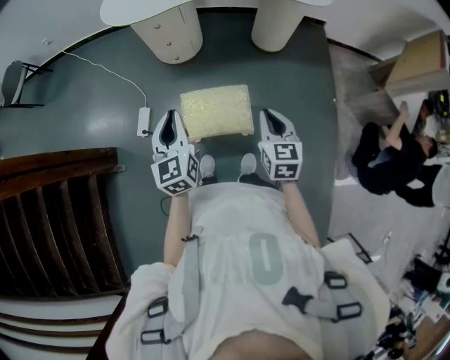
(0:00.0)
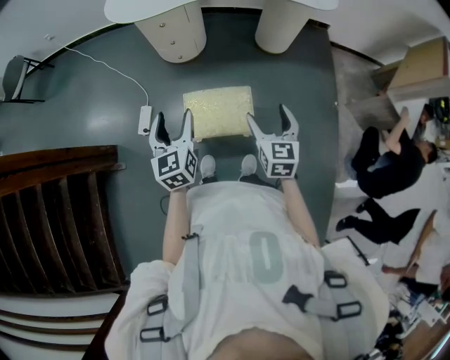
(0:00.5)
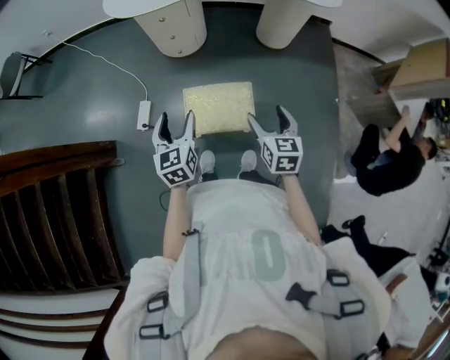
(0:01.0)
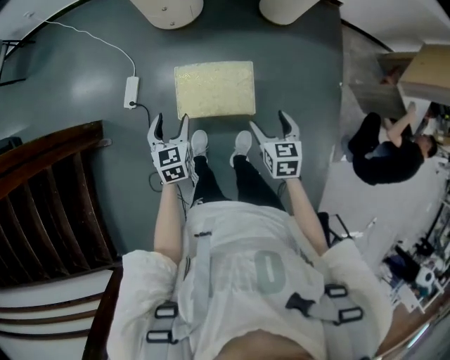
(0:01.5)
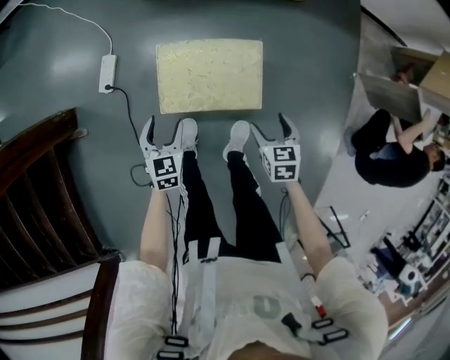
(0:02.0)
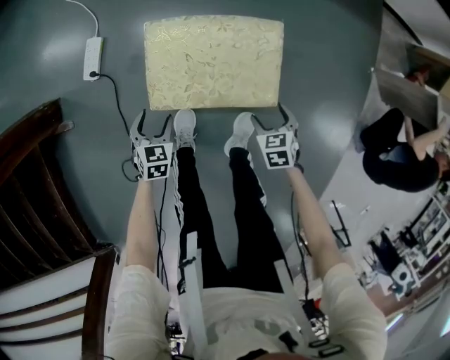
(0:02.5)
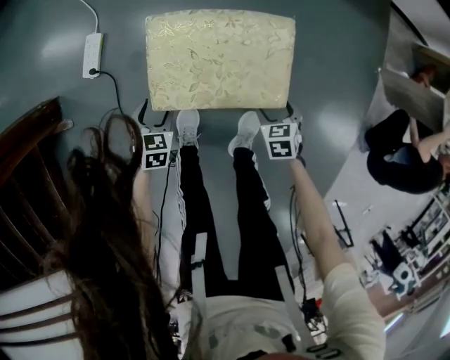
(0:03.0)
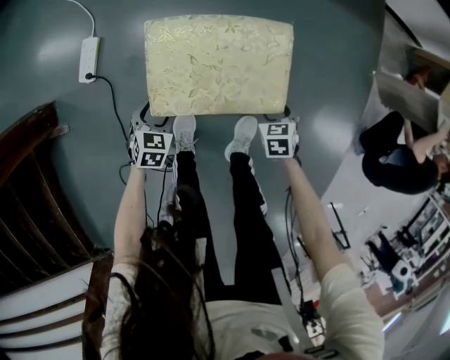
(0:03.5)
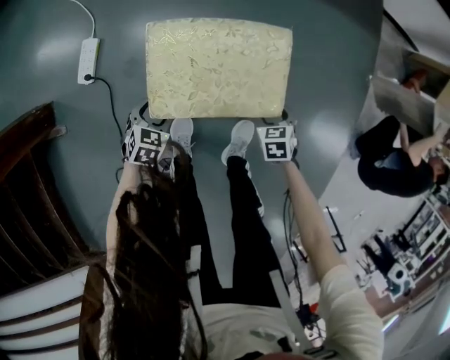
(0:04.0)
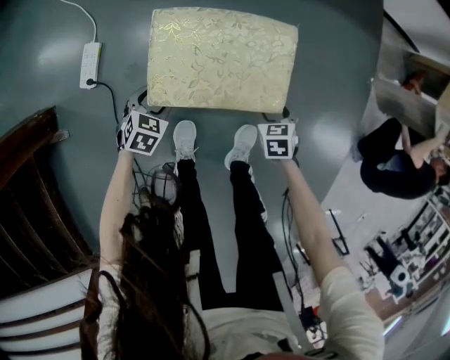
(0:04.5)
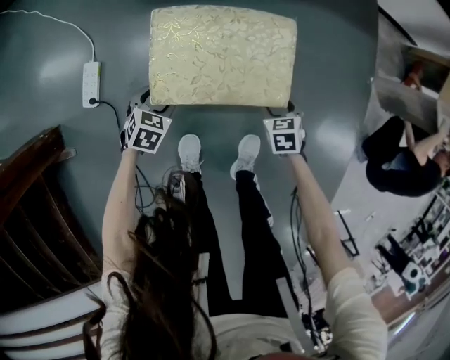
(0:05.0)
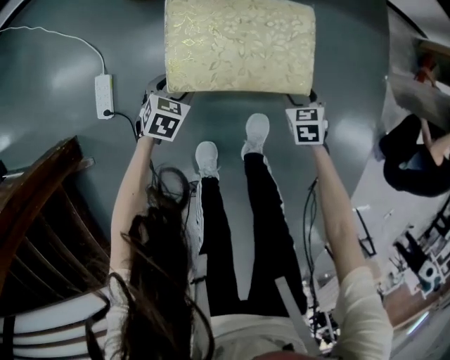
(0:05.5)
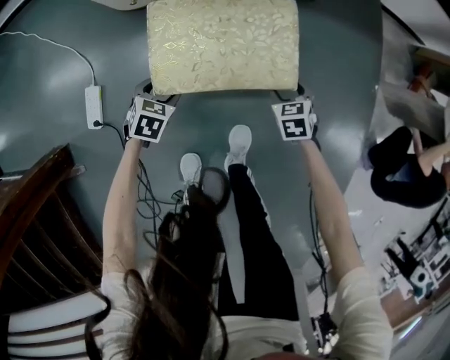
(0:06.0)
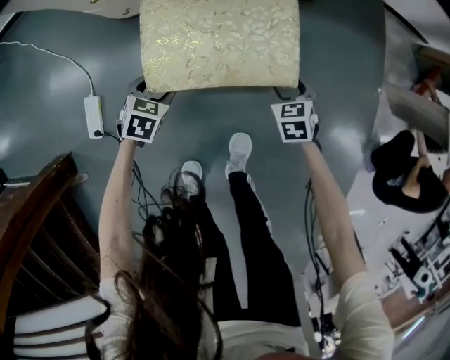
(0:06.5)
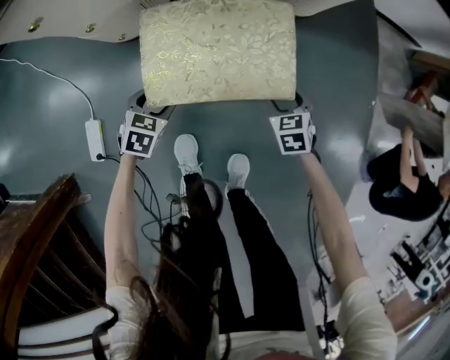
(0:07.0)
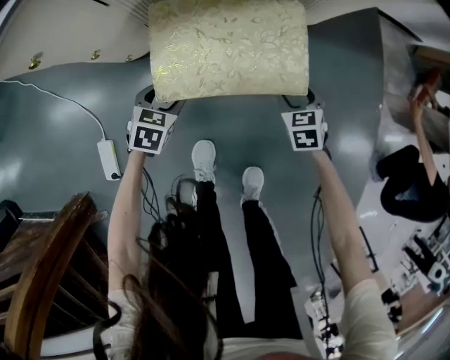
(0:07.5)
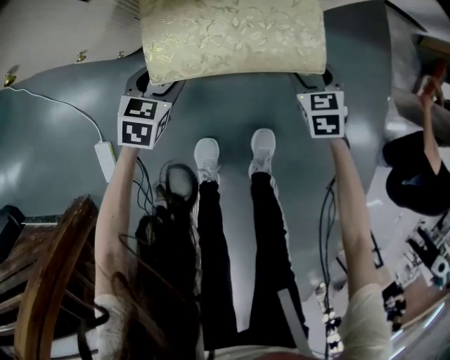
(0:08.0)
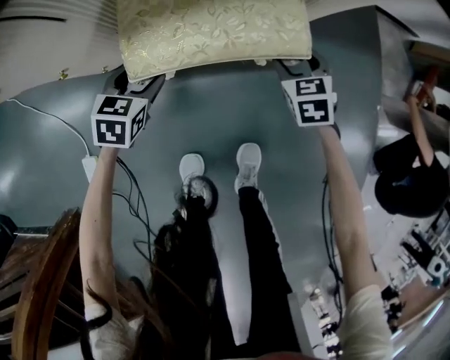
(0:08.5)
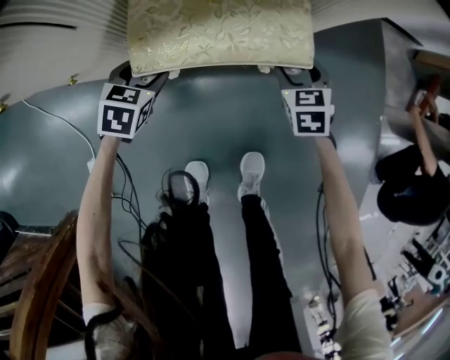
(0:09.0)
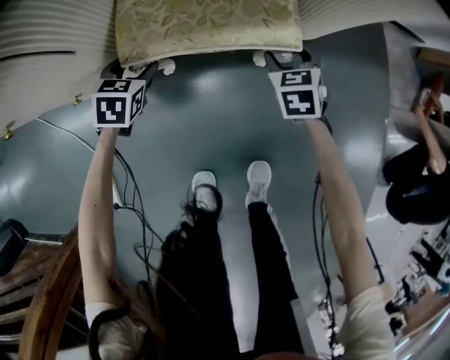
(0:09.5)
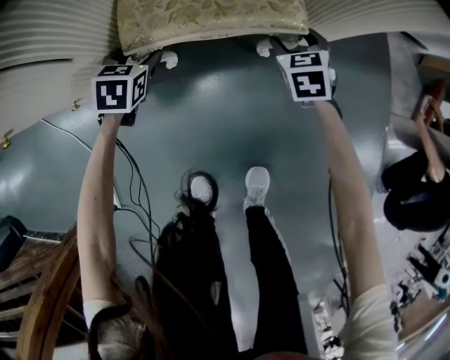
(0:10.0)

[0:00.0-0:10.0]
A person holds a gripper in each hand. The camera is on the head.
0:00.0 to 0:02.0: Both grippers move downward, roughly 35 cm. The left gripper tilts its fingers approximately 30 degrees downward, and opens its fingers; the right gripper swivels some 30 degrees, and opens its fingers.
0:02.0 to 0:04.0: Both grippers move downward, some 20 cm. The left gripper turns by roughly 30 degrees.
0:04.0 to 0:08.0: The grippers move only a little.
0:08.0 to 0:10.0: The grippers make only small movements.

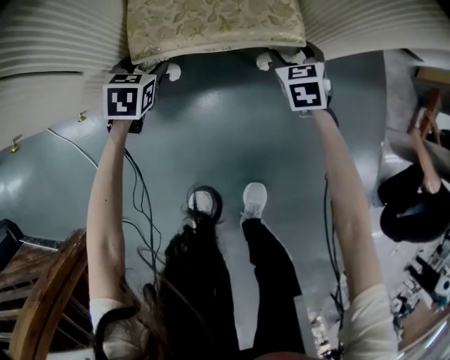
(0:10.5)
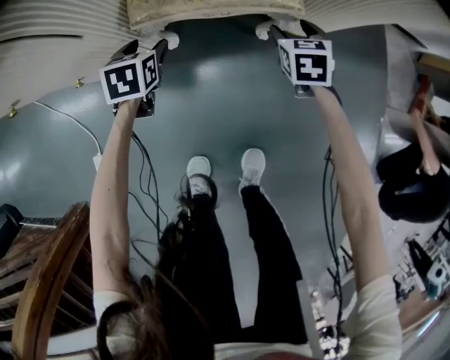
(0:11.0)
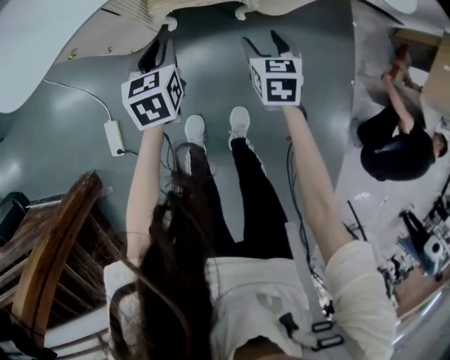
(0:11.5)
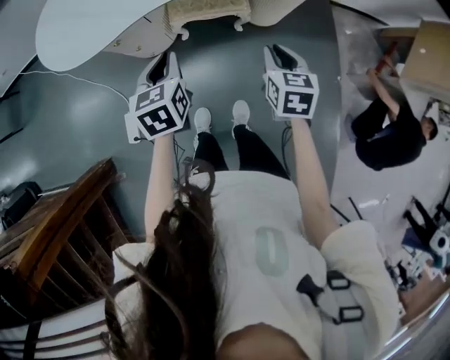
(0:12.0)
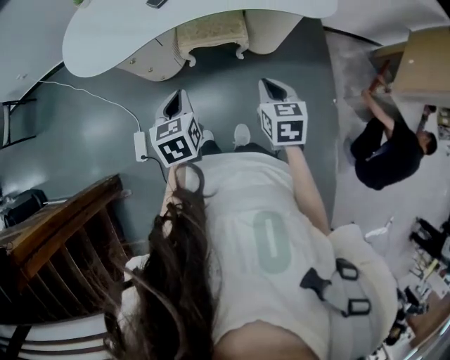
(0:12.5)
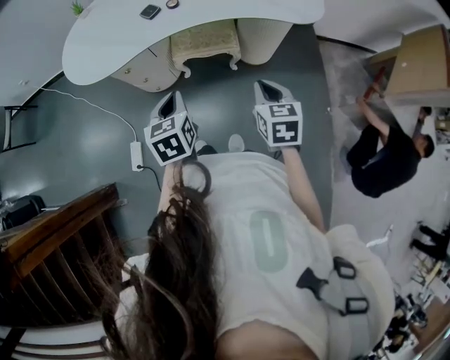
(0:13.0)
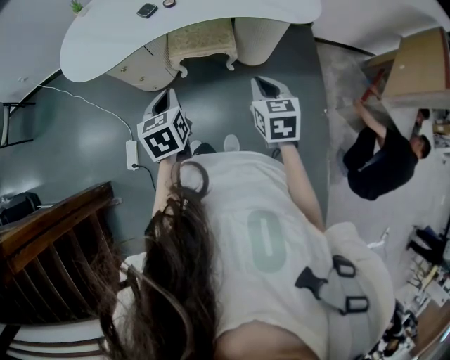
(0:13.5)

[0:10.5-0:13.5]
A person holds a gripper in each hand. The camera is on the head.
0:10.5 to 0:12.0: Both grippers move upward and backward, about 50 cm. The left gripper swivels some 30 degrees, and closes up. Meanwhile the right gripper turns by approximately 20 degrees, and closes.
0:12.0 to 0:13.5: The right gripper moves backward and upward, approximately 10 cm. The left gripper is displaced backward and to the right by approximately 10 cm.

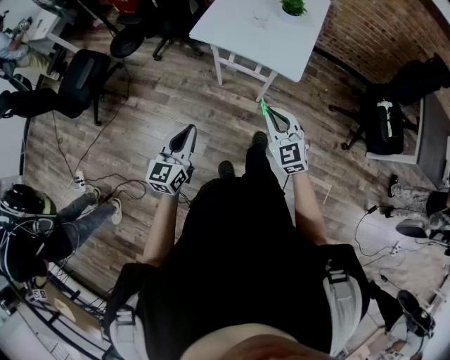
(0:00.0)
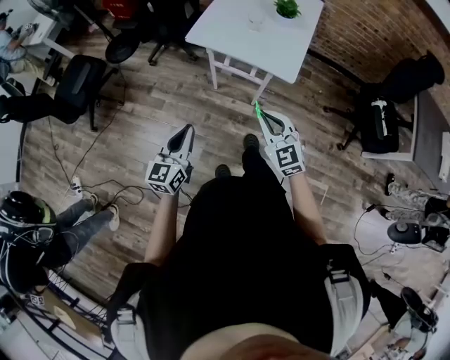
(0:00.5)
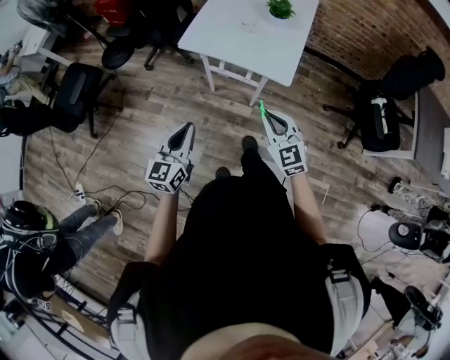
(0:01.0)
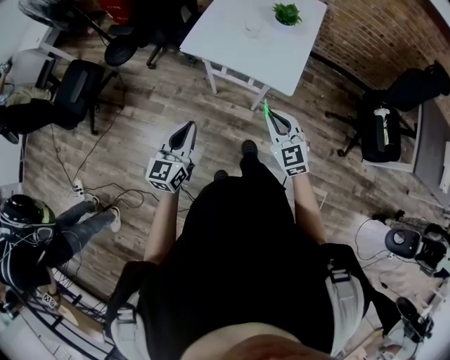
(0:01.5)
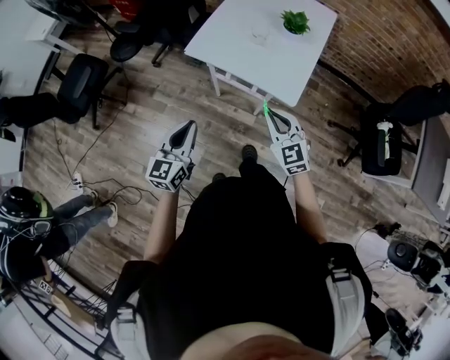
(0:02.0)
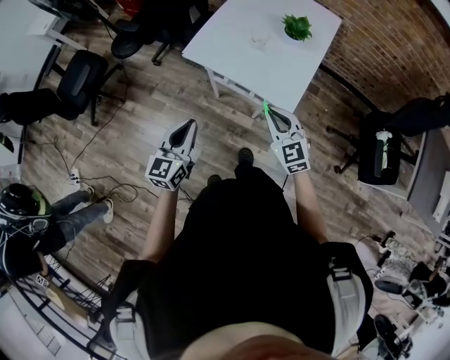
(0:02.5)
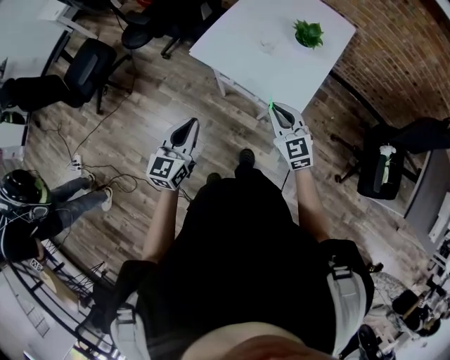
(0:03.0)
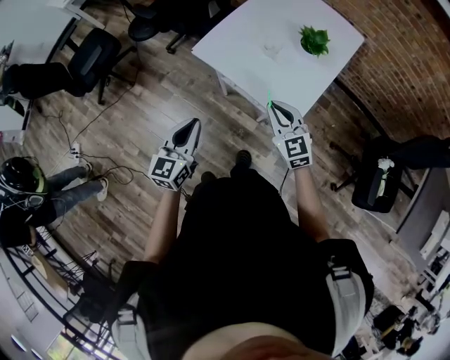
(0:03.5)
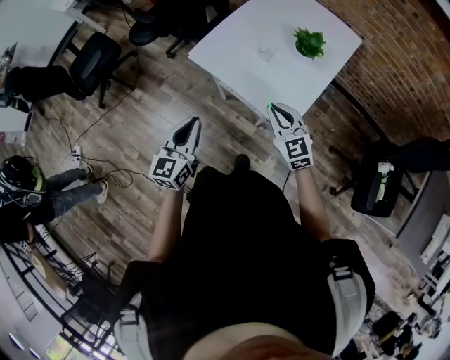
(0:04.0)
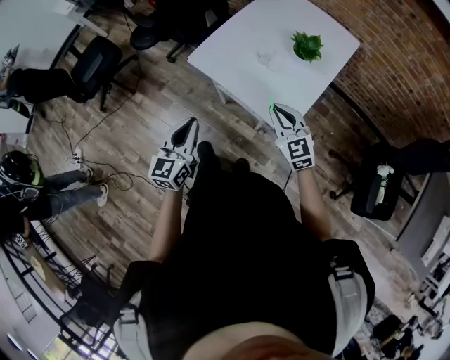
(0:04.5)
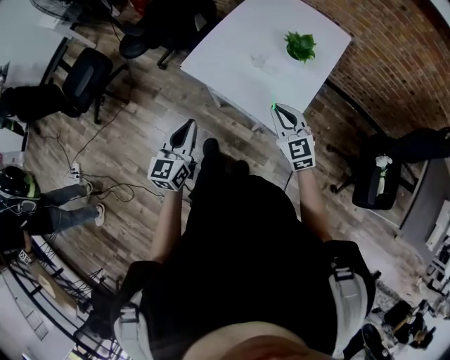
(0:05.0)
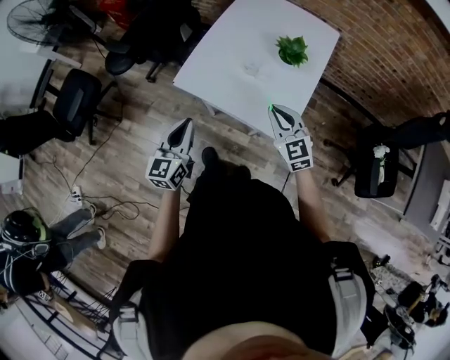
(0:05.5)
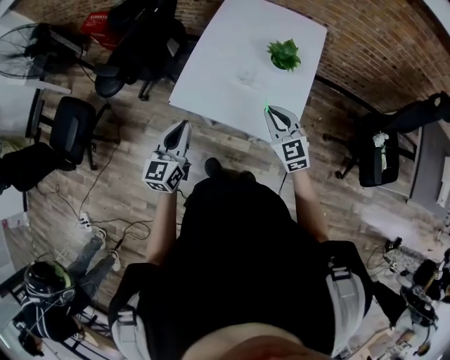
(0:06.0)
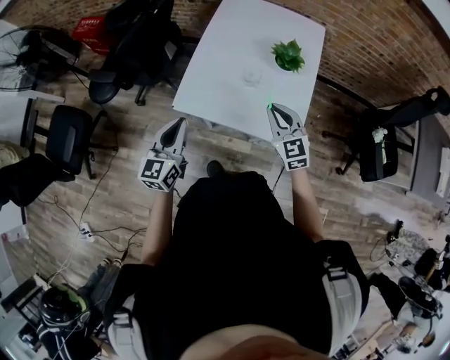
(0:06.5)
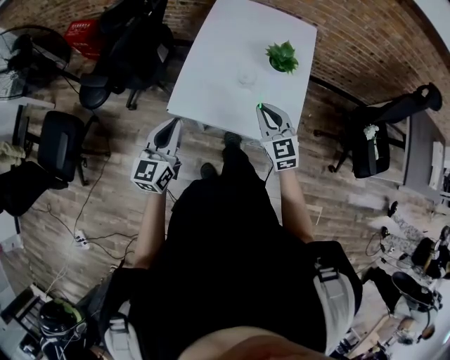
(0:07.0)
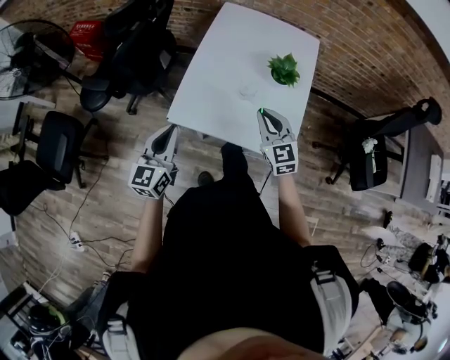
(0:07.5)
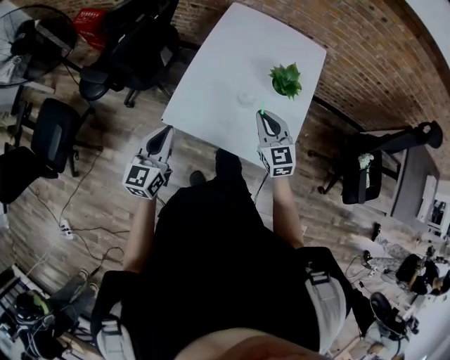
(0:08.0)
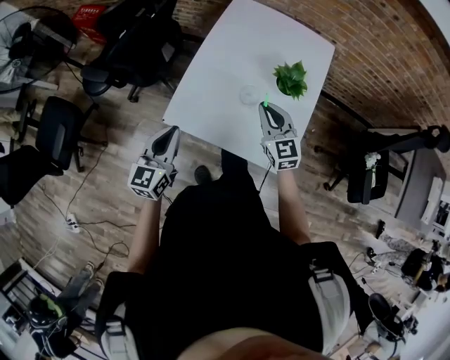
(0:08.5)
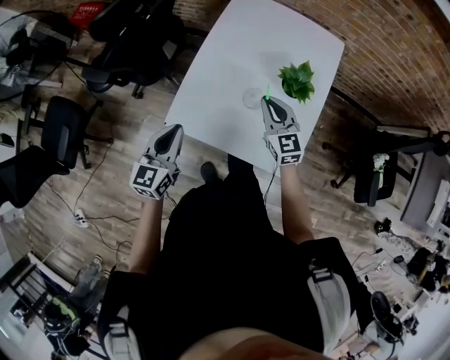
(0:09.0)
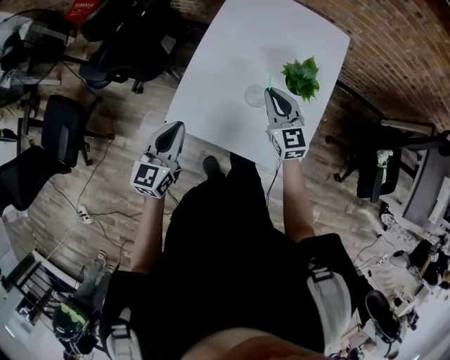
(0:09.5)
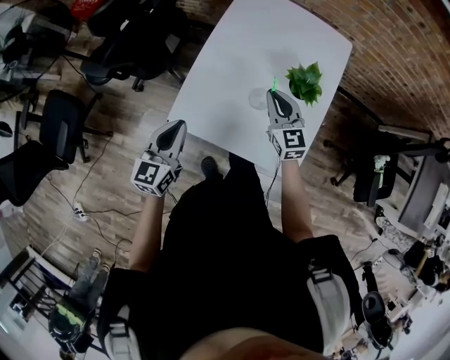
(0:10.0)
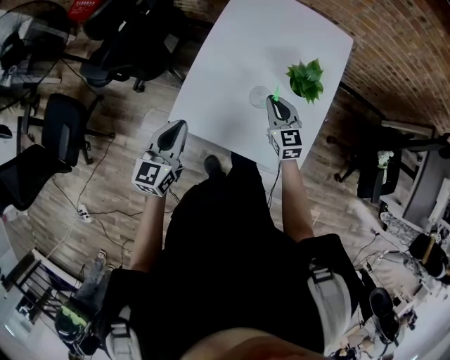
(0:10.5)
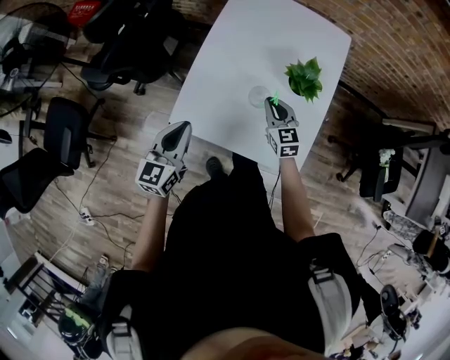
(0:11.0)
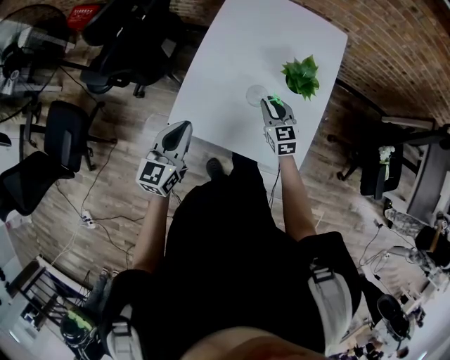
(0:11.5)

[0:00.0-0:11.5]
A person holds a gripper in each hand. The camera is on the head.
0:00.0 to 0:02.0: Both grippers travel together forward, approximately 15 cm.
0:02.0 to 0:04.0: The right gripper moves forward and to the right, roughly 15 cm. The left gripper goes roughly 10 cm to the right and forward.
0:04.0 to 0:06.0: The left gripper is displaced forward by roughly 20 cm. The right gripper goes some 10 cm forward.
0:06.0 to 0:07.5: The right gripper travels forward and to the left by approximately 10 cm, while the left gripper moves to the left and forward, some 10 cm.
0:07.5 to 0:09.5: The right gripper is displaced forward by about 15 cm. The left gripper moves forward, about 10 cm.
0:09.5 to 0:11.5: The right gripper moves downward, roughly 10 cm.

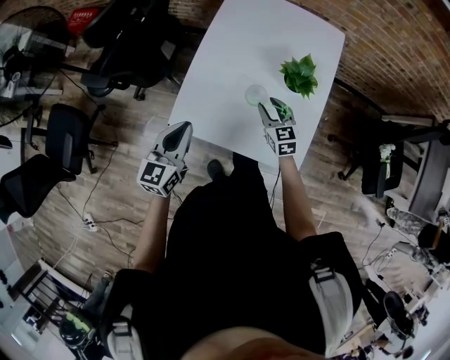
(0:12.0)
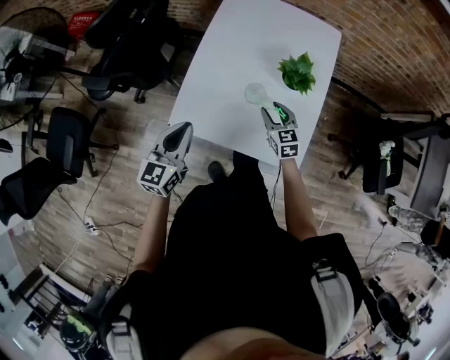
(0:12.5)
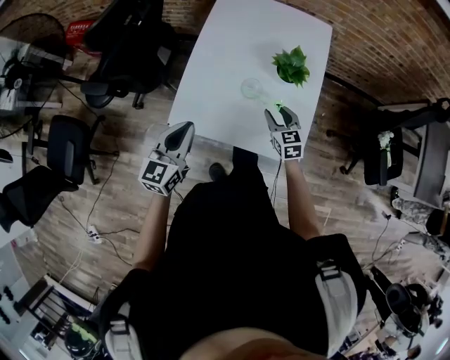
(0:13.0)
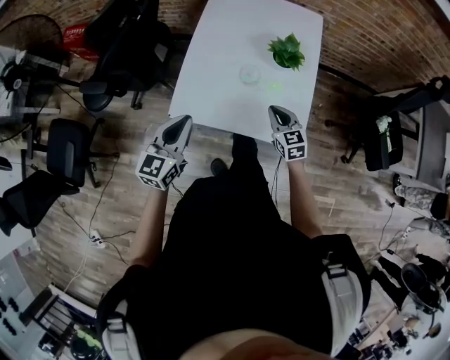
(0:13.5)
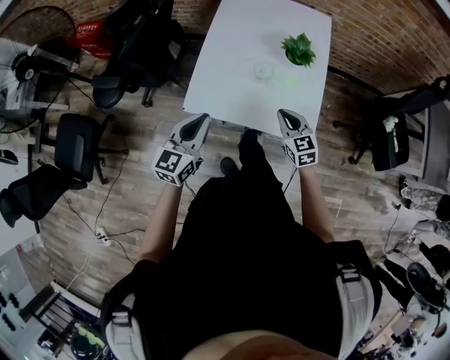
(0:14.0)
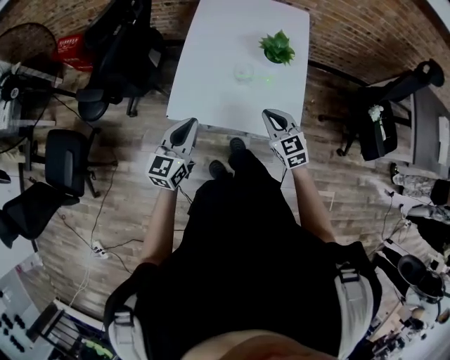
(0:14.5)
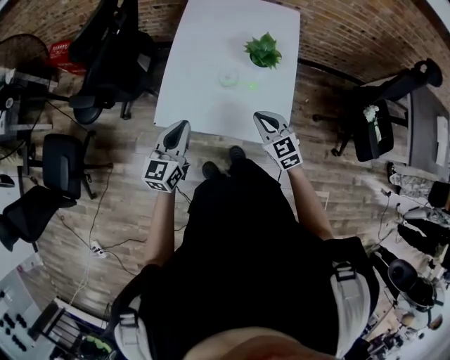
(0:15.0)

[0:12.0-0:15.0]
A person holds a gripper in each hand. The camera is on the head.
0:12.0 to 0:13.5: The right gripper shifts some 10 cm backward, and closes; the left gripper moves backward, approximately 5 cm.
0:13.5 to 0:15.0: The right gripper travels upward by roughly 5 cm.
